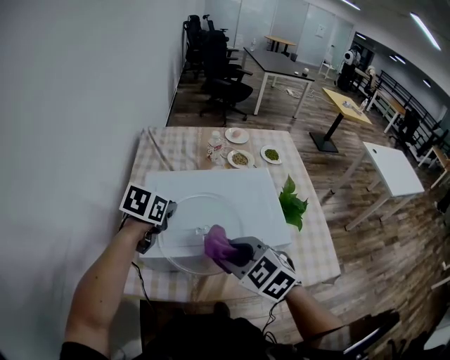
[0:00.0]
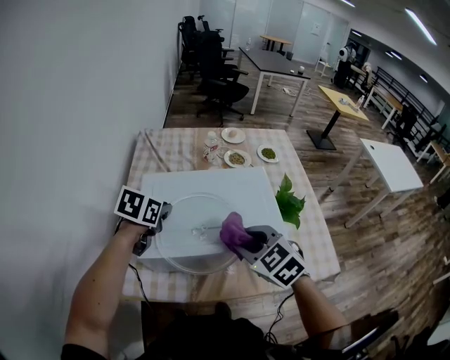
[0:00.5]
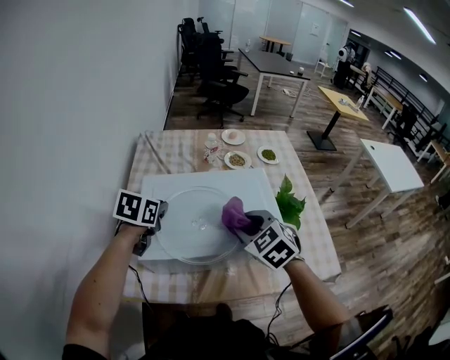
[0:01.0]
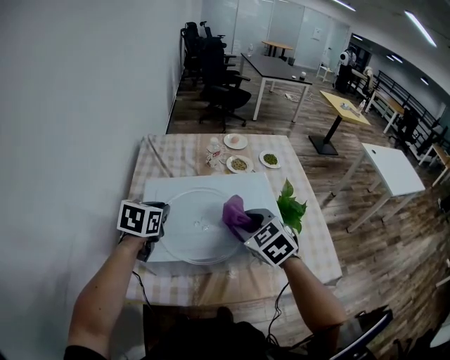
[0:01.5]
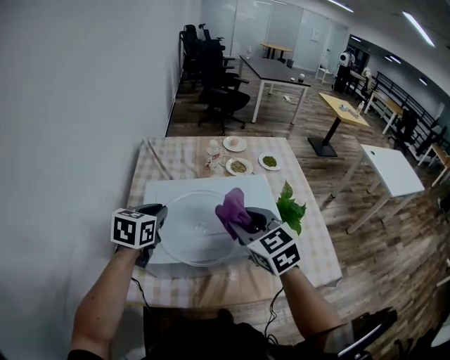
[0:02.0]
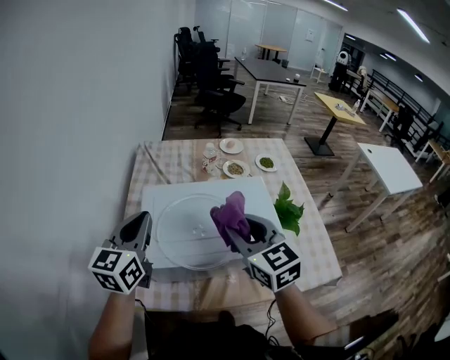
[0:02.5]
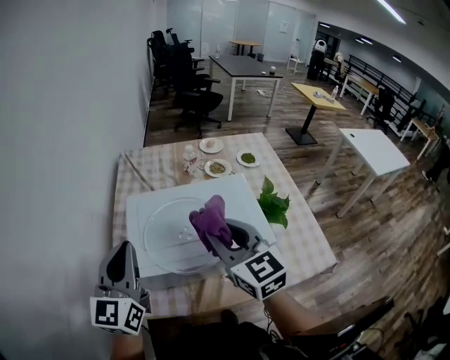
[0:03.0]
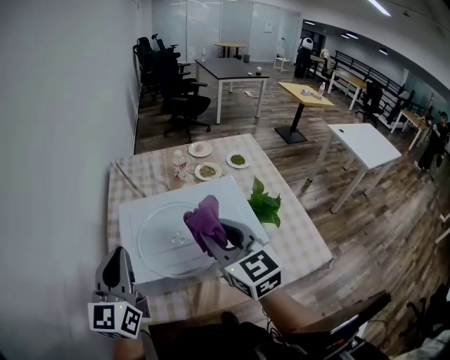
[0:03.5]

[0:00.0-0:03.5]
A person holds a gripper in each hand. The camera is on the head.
0:00.0 to 0:02.0: The right gripper goes approximately 10 cm forward and upward, and swivels roughly 20 degrees.
0:02.0 to 0:03.5: The right gripper shifts approximately 5 cm upward. Meanwhile the left gripper goes roughly 15 cm upward and backward, and tips its fingers upward by about 40 degrees.

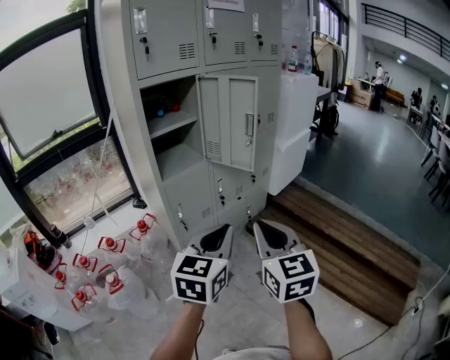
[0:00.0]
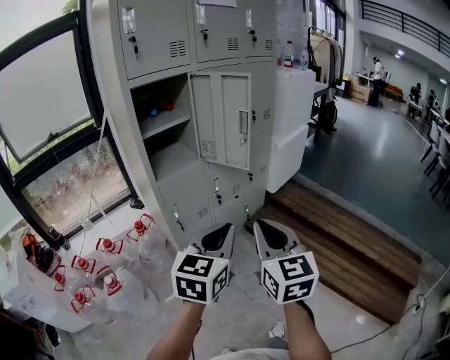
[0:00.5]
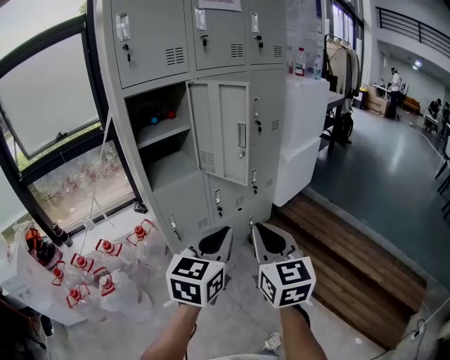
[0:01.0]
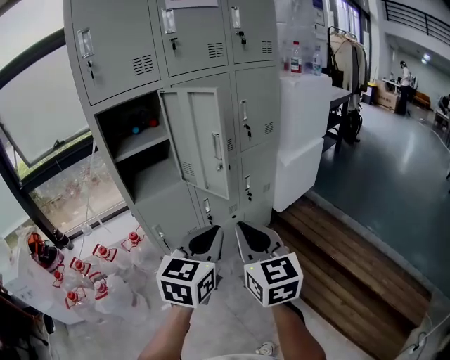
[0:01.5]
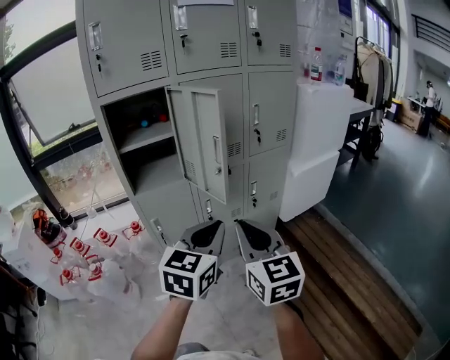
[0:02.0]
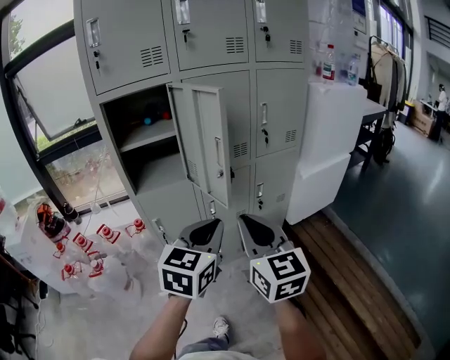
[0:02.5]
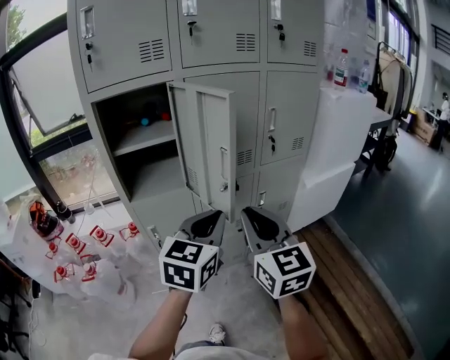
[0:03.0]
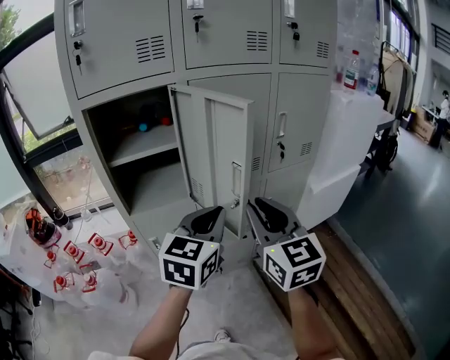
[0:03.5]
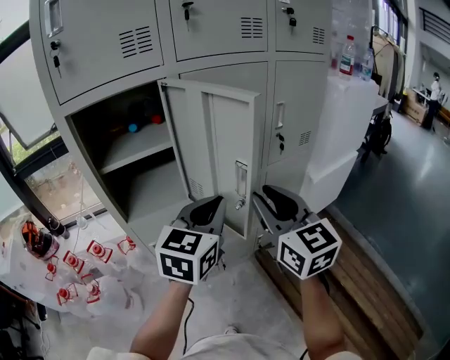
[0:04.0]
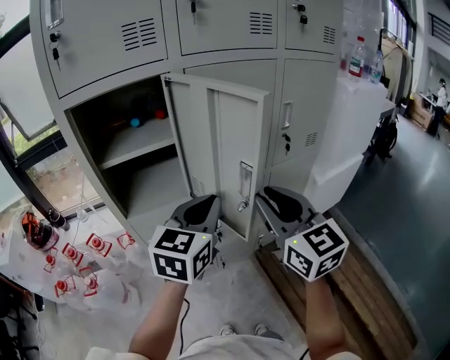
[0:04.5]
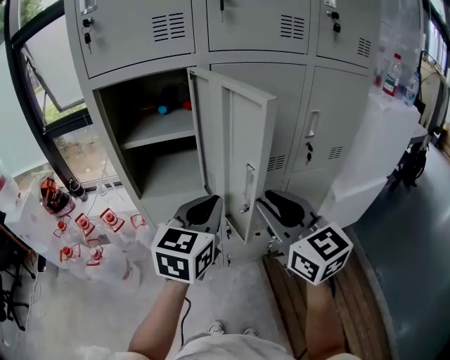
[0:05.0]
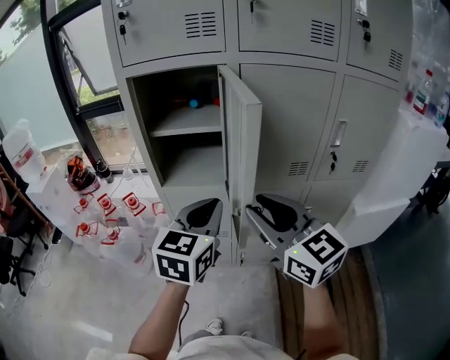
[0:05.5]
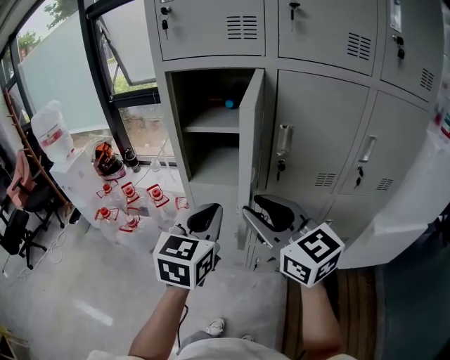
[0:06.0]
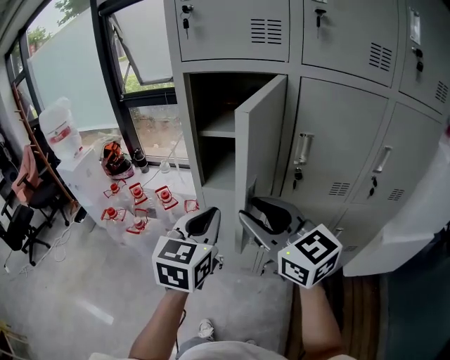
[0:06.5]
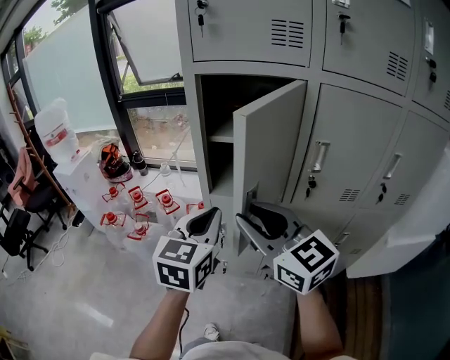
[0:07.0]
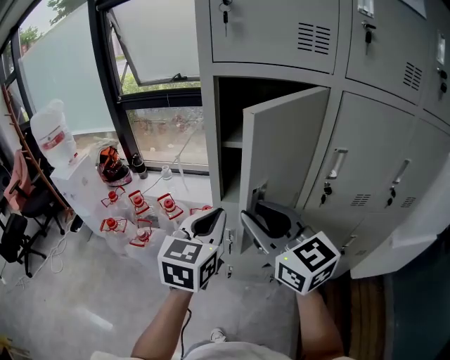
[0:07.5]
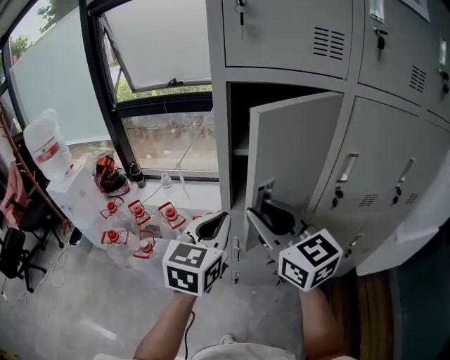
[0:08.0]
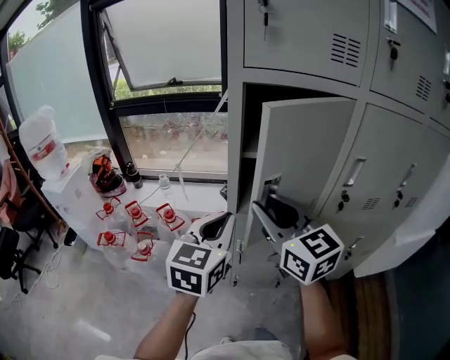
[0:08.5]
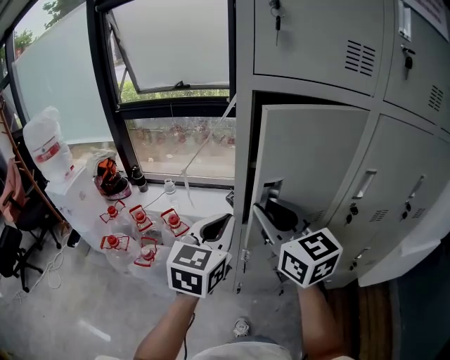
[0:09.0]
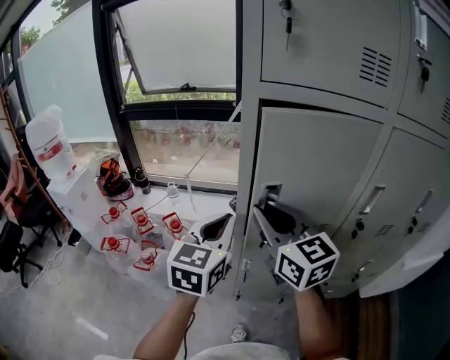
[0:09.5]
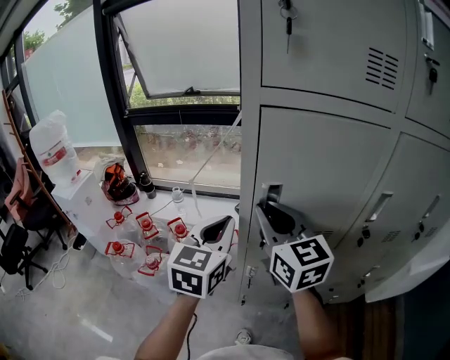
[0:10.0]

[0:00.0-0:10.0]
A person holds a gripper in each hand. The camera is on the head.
0:00.0 to 0:02.0: The grippers both shift forward and to the right by approximately 25 cm. The right gripper rotates roughly 20 degrees.
0:02.0 to 0:04.0: Both grippers travel together forward, about 25 cm.
0:04.0 to 0:06.0: The left gripper shifts by approximately 10 cm, and swivels approximately 40 degrees. Meanwhile the right gripper moves about 10 cm, and swivels approximately 50 degrees.
0:06.0 to 0:08.0: The two grippers go roughly 20 cm to the left and forward.
0:08.0 to 0:10.0: Both grippers move forward, roughly 10 cm.

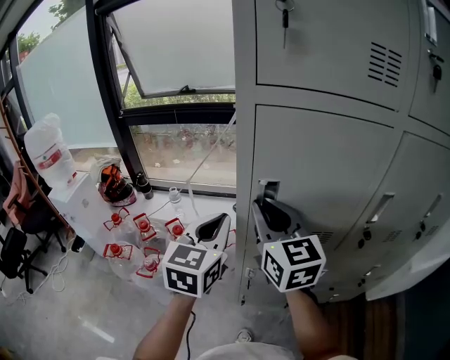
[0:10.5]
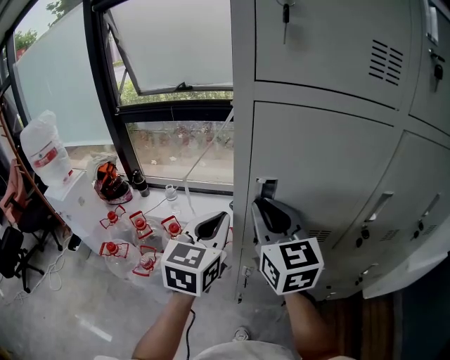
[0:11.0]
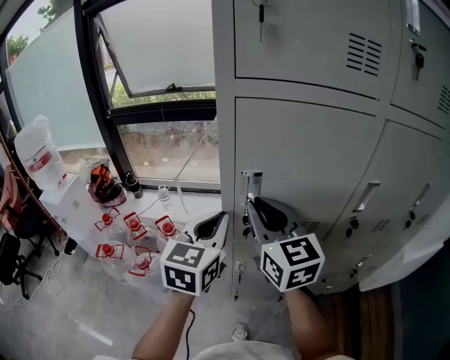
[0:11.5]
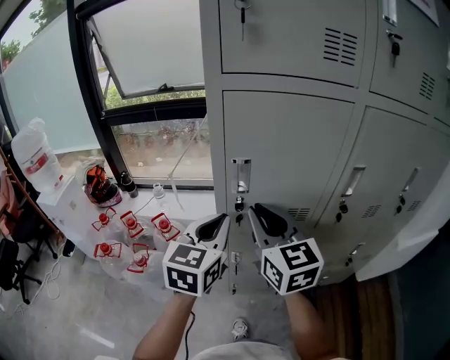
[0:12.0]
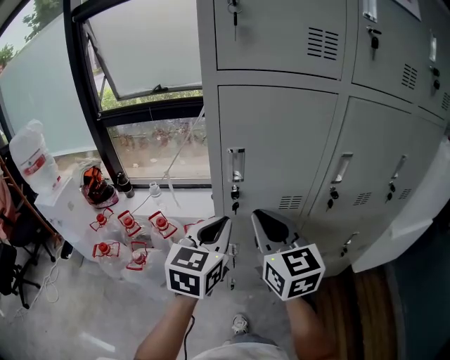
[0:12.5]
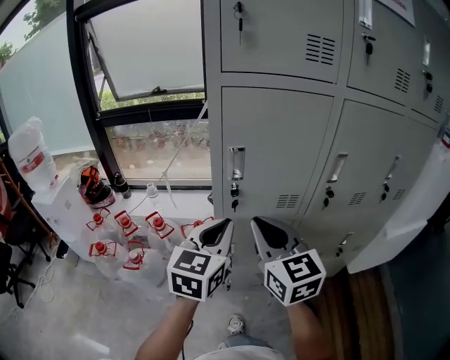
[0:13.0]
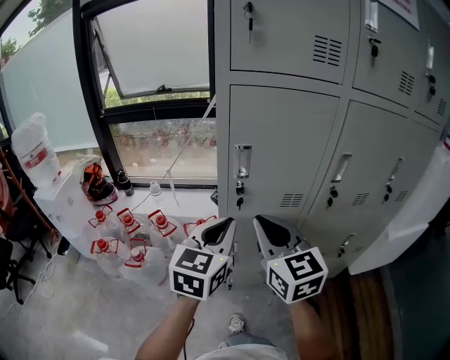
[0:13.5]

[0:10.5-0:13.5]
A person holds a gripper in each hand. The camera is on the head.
0:10.5 to 0:12.0: Both grippers travel together backward, roughly 5 cm.
0:12.0 to 0:13.5: Both grippers travel together backward, some 10 cm.

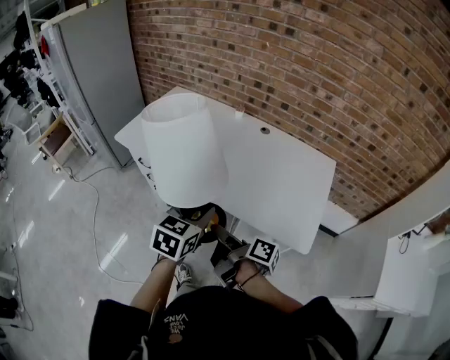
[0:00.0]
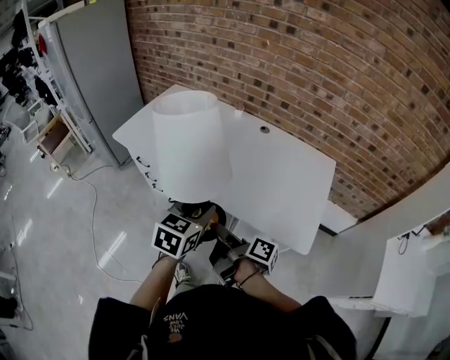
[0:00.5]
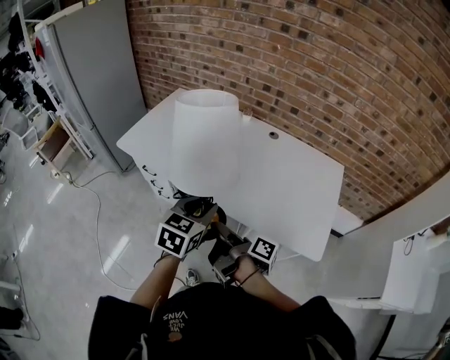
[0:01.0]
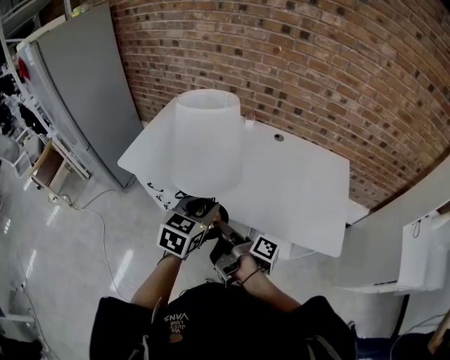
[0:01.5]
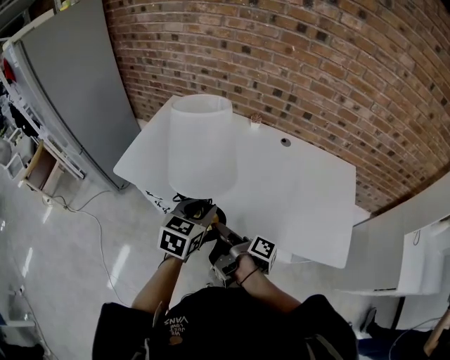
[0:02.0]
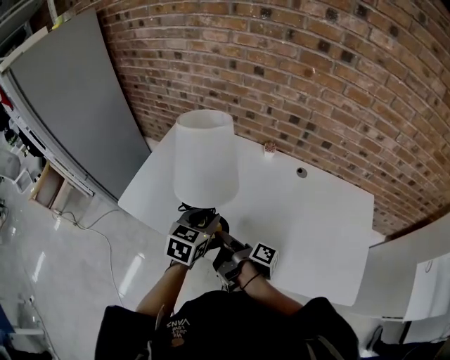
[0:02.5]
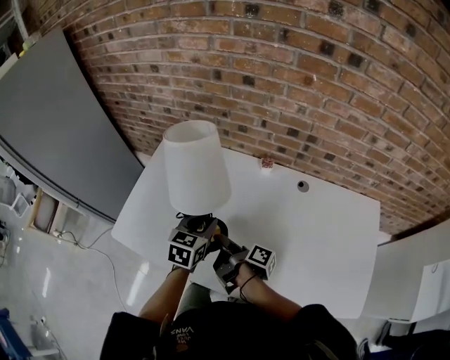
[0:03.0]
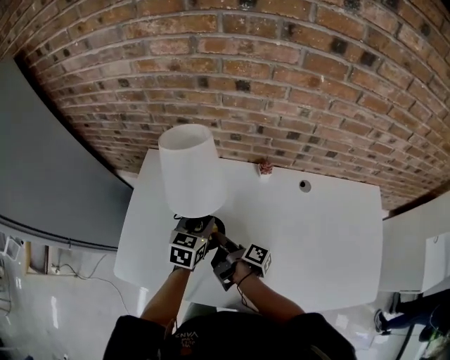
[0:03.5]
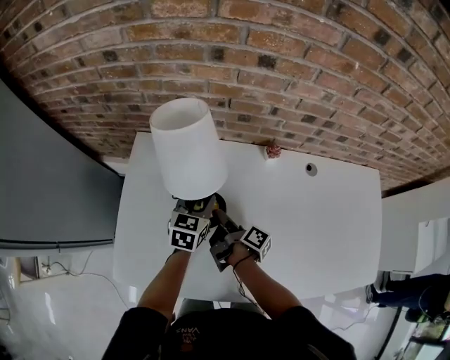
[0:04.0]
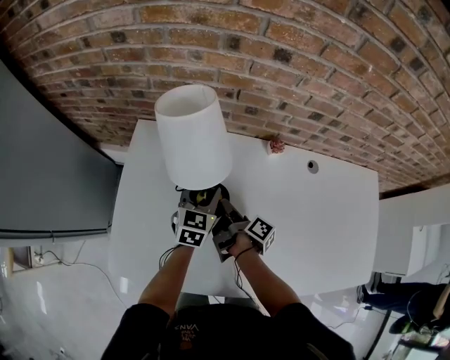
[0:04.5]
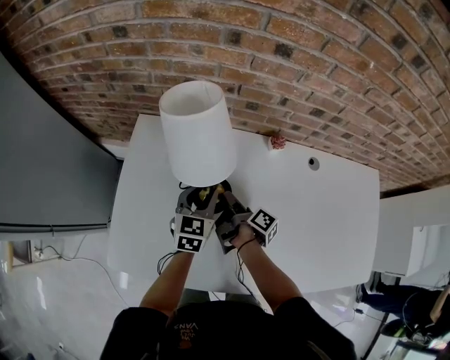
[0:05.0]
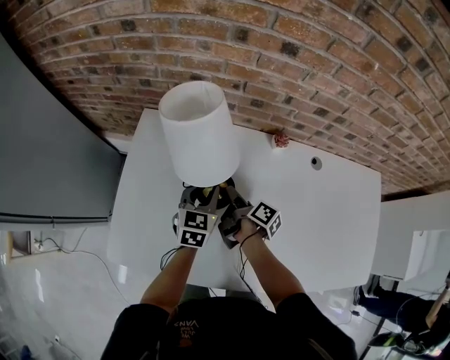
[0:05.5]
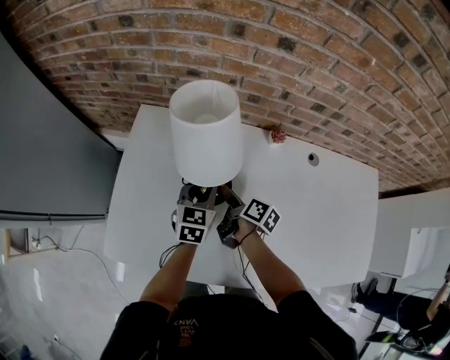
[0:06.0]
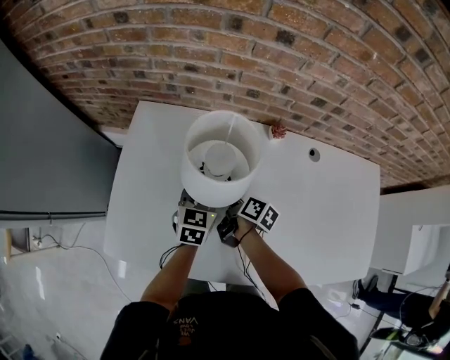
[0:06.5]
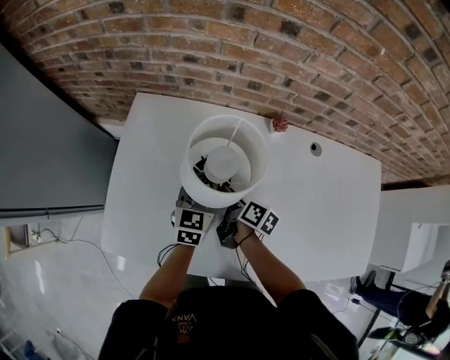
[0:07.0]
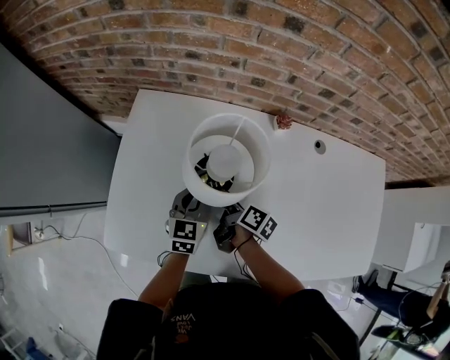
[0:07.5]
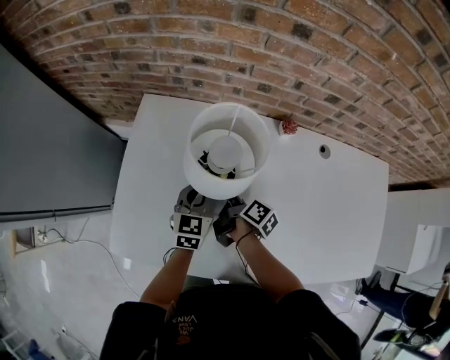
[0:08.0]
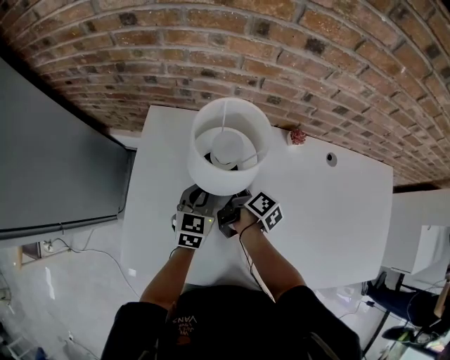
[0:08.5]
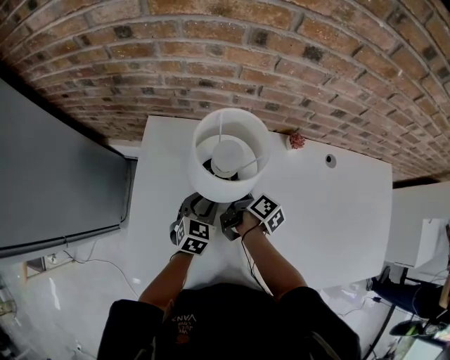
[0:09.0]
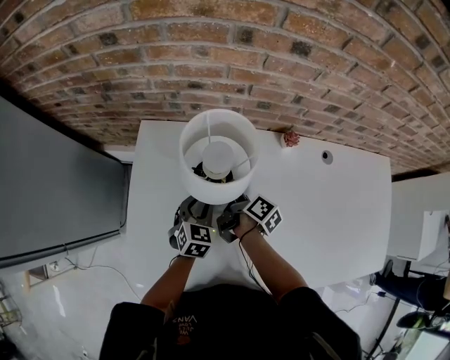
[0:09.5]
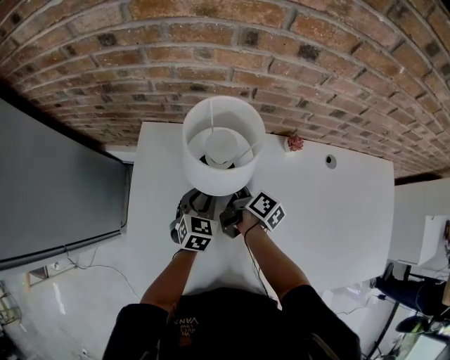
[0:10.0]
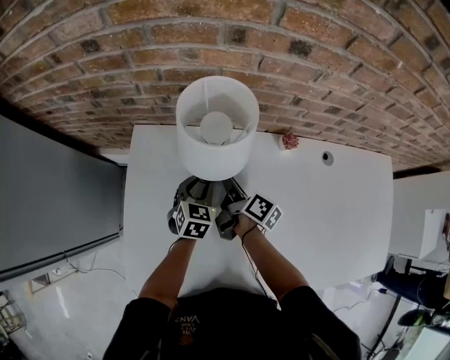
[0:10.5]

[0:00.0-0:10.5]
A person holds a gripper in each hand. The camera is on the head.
0:00.0 to 0:02.0: The left gripper shifts by about 25 cm.
0:02.0 to 0:04.0: The left gripper moves about 50 cm.
0:04.0 to 0:06.5: The left gripper changes place by roughly 5 cm.
0:06.5 to 0:08.5: The left gripper changes place by approximately 5 cm.
0:08.5 to 0:10.5: The left gripper ends up some 10 cm from where it was, and opens its fingers.
